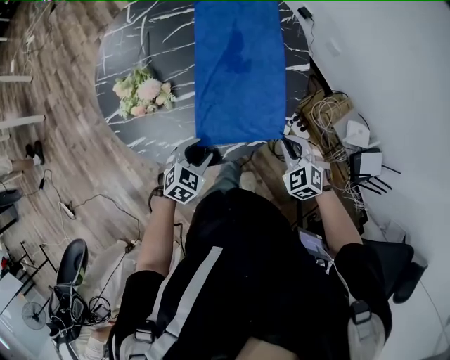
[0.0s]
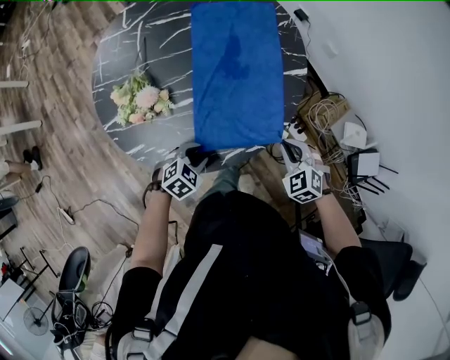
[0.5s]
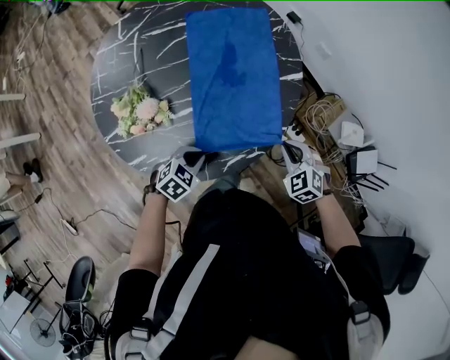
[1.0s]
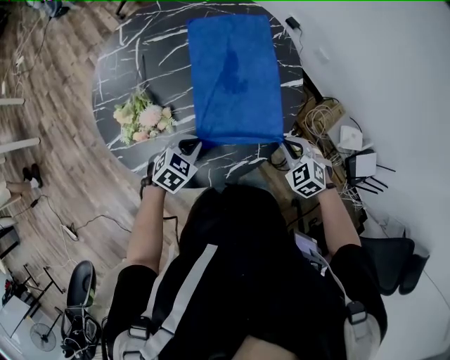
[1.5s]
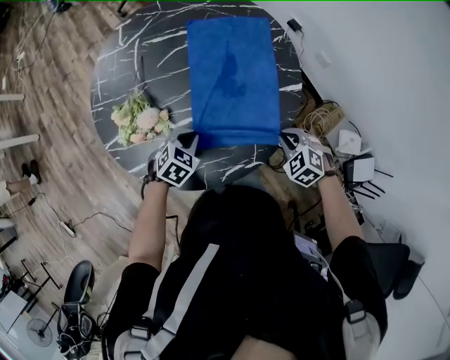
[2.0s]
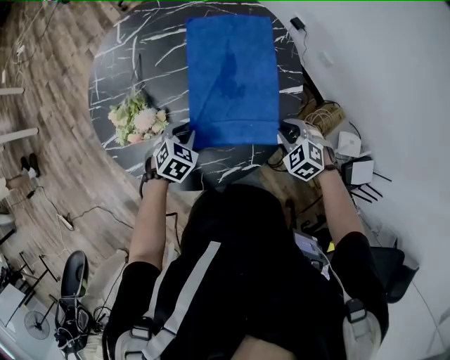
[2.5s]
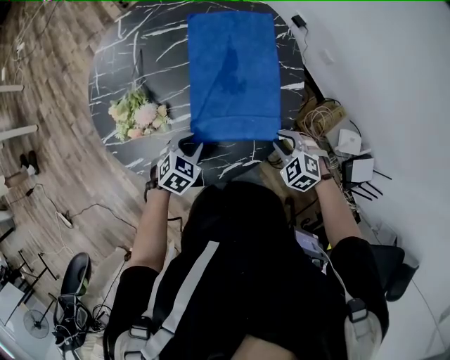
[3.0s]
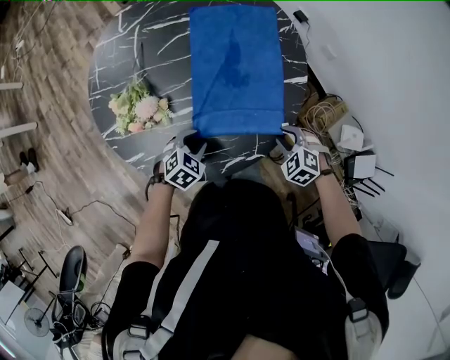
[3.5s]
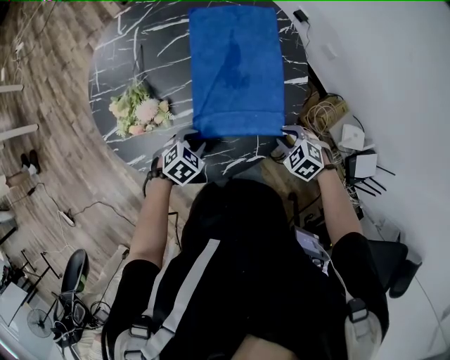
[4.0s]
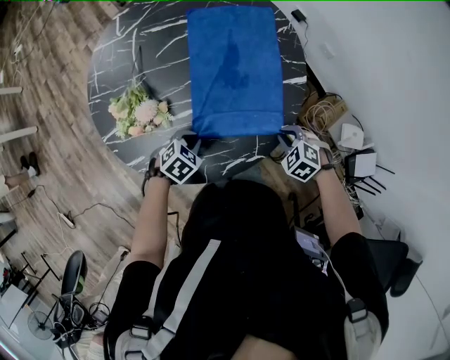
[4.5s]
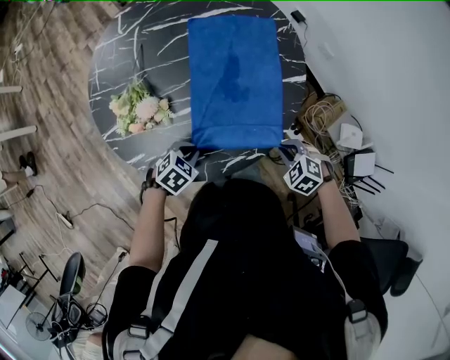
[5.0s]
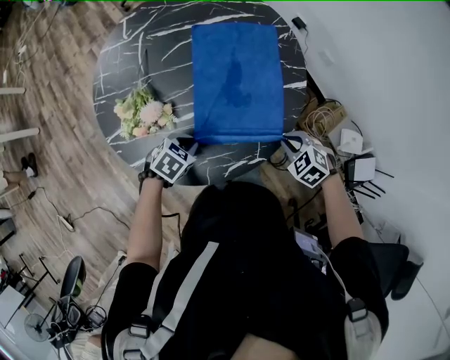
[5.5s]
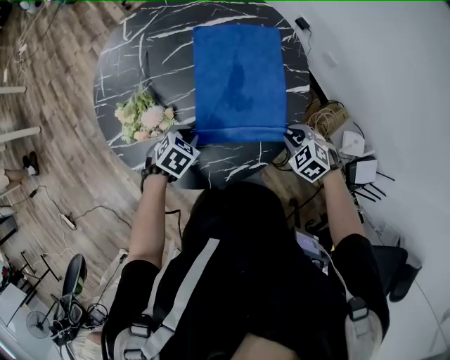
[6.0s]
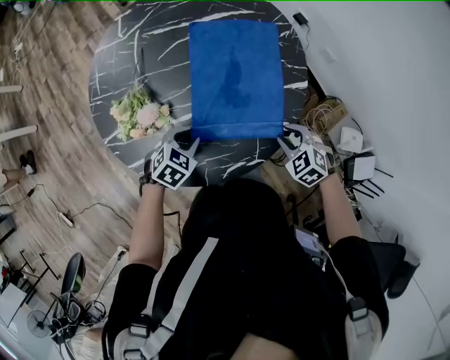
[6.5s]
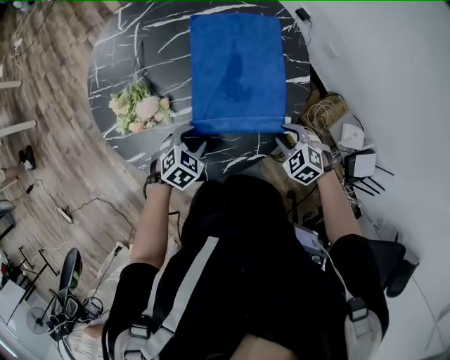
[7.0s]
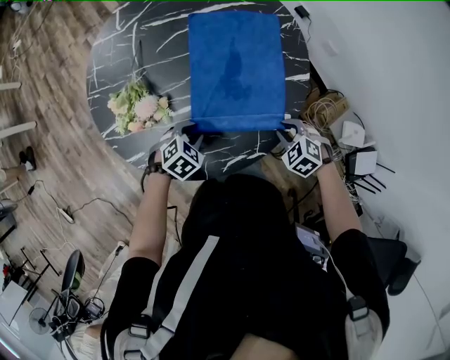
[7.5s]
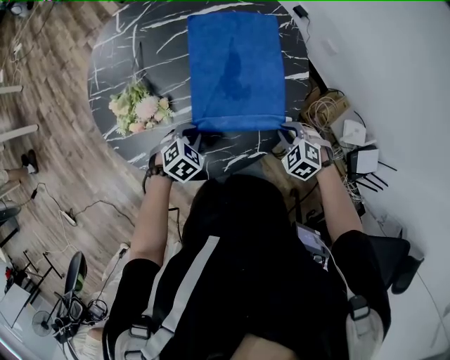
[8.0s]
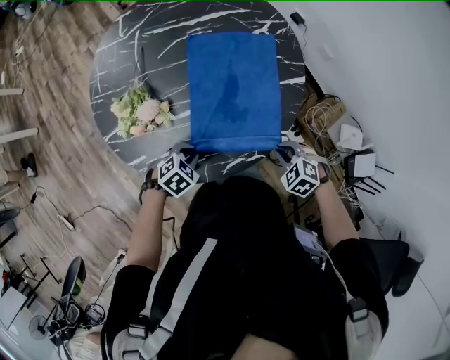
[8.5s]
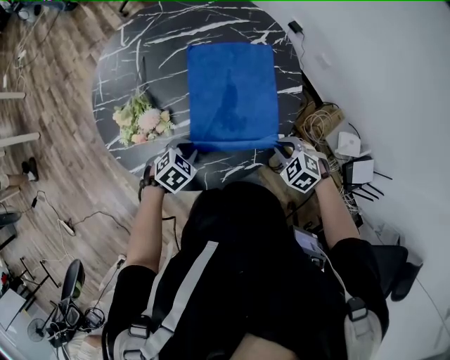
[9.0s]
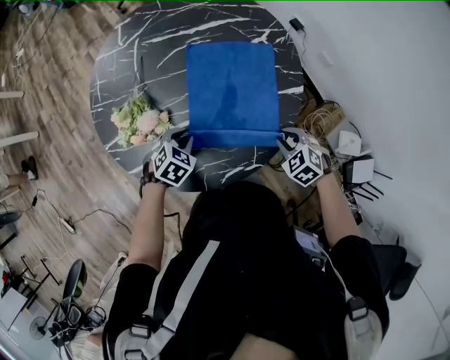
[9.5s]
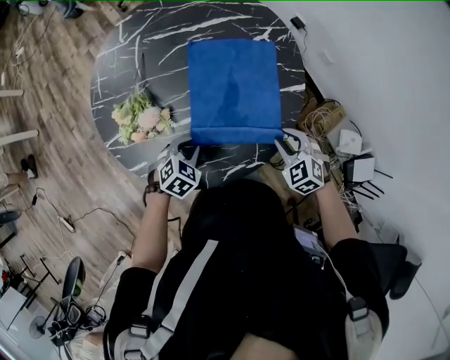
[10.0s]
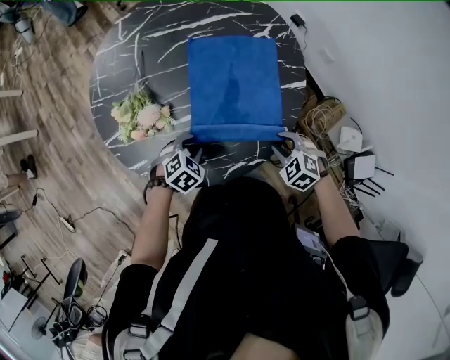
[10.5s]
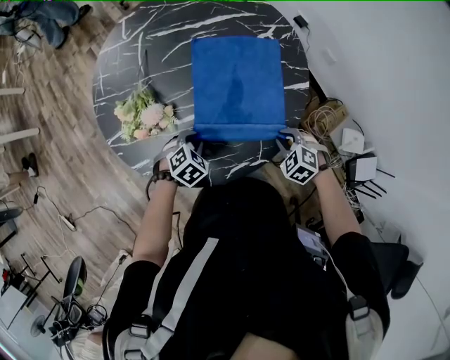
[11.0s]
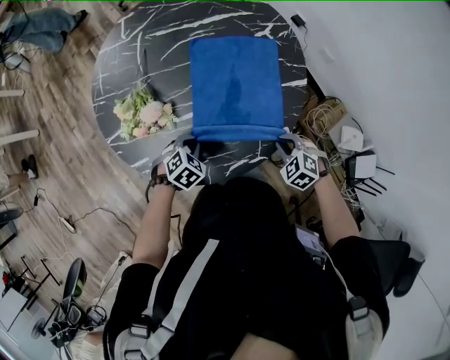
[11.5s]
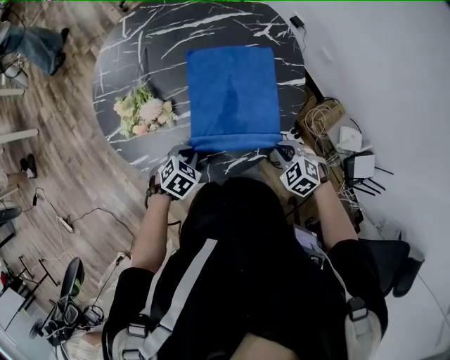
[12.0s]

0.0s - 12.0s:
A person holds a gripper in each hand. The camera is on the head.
0.0s - 2.0s: Both grippers move forward, about 10 cm. The left gripper closes its fingers.
2.0s - 4.0s: The right gripper opens up, while the left gripper ends up some 5 cm from where it was, and opens its fingers.
4.0s - 6.0s: The left gripper changes place by approximately 5 cm.
6.0s - 8.0s: The left gripper opens, then closes once more.
8.0s - 10.0s: The left gripper goes forward and backward, some 10 cm each way, reversing 2 times; the right gripper shifts roughly 5 cm upward, and goes backward and returns, approximately 5 cm each way.
10.0s - 12.0s: The grippers both shift backward by roughly 5 cm. The right gripper closes its fingers.

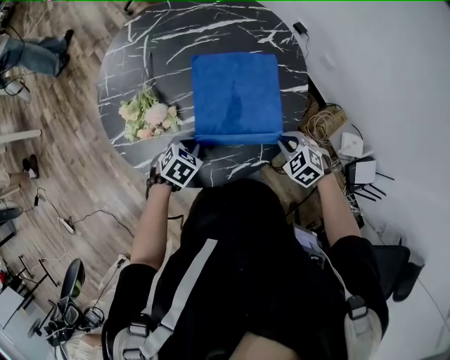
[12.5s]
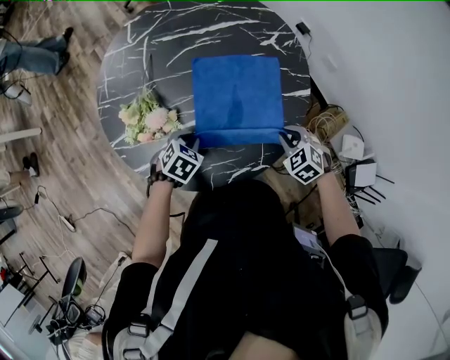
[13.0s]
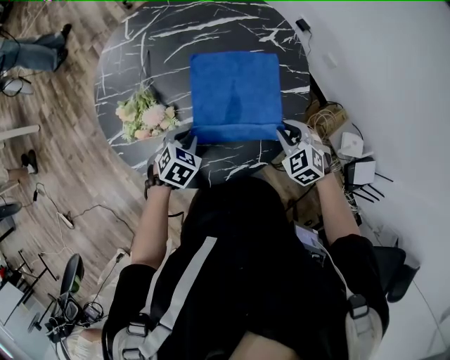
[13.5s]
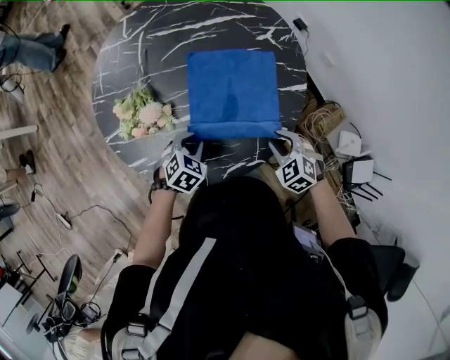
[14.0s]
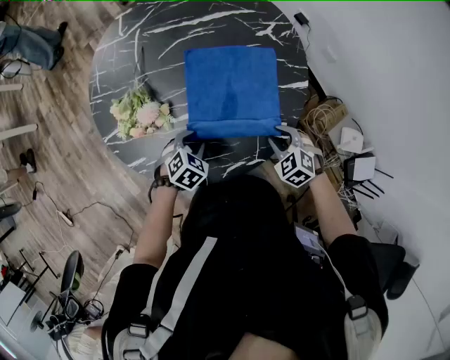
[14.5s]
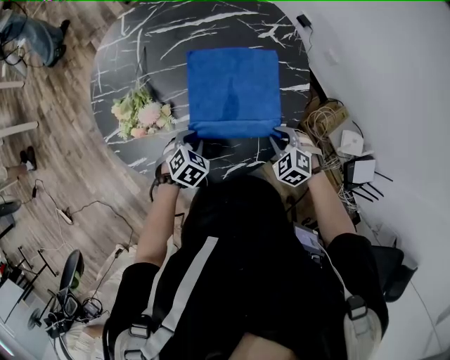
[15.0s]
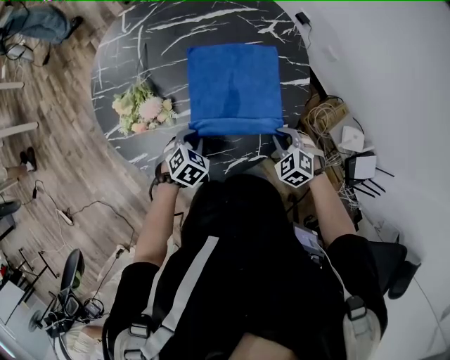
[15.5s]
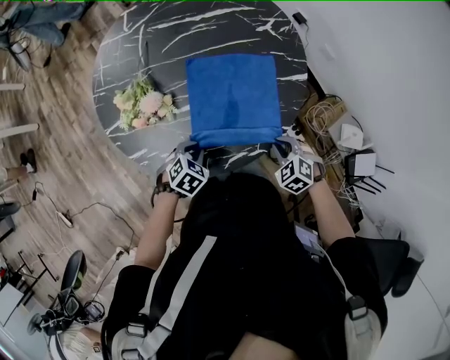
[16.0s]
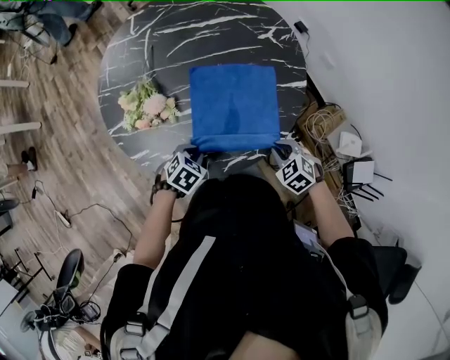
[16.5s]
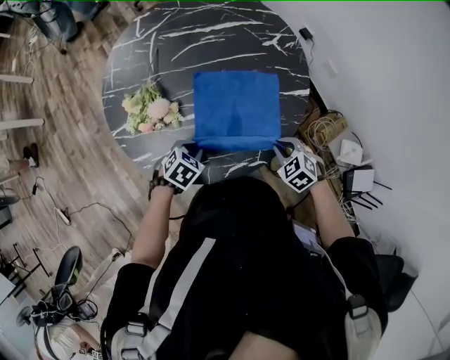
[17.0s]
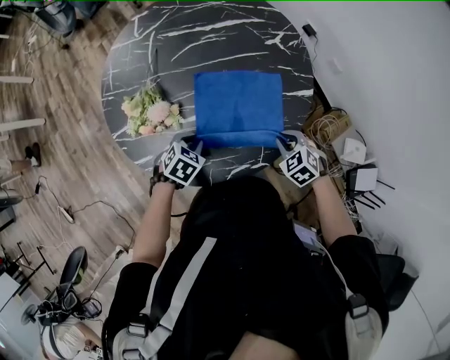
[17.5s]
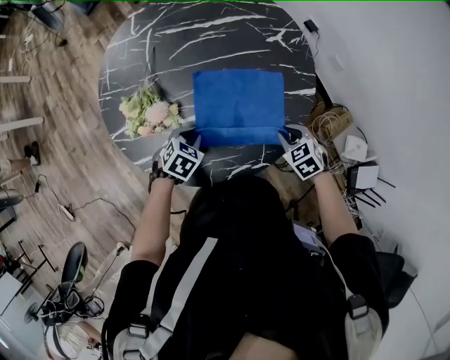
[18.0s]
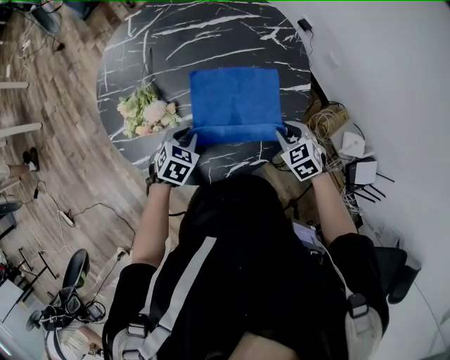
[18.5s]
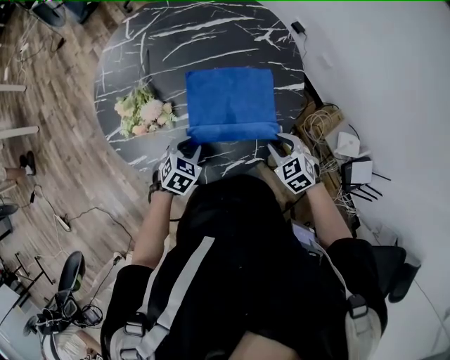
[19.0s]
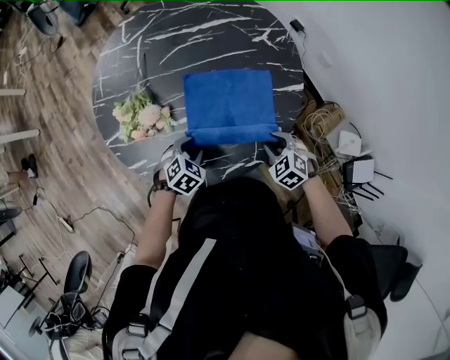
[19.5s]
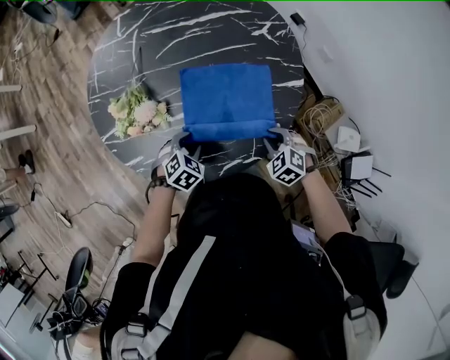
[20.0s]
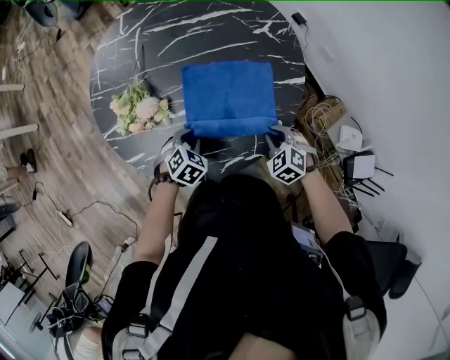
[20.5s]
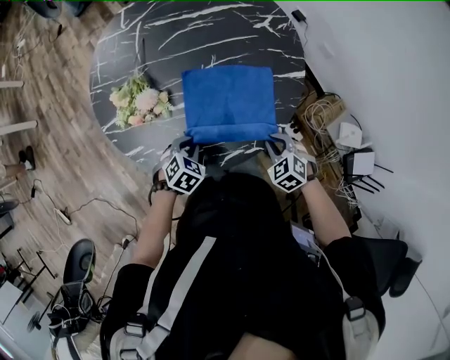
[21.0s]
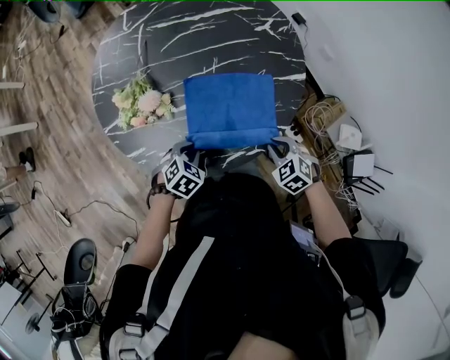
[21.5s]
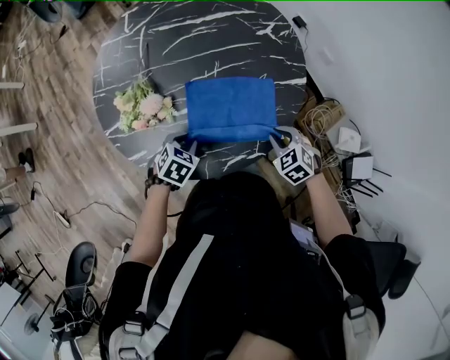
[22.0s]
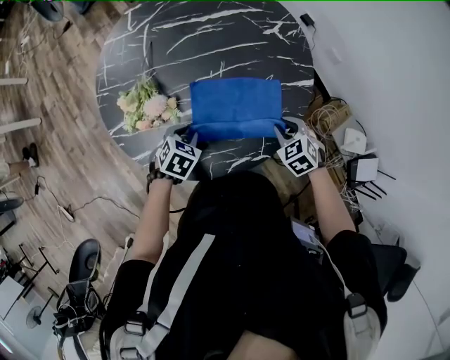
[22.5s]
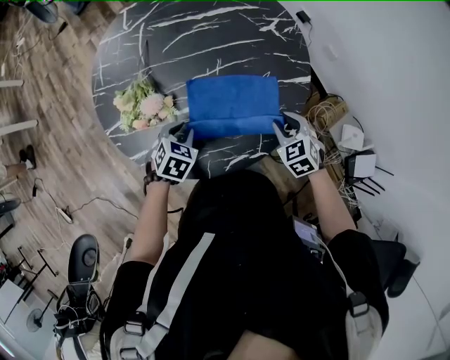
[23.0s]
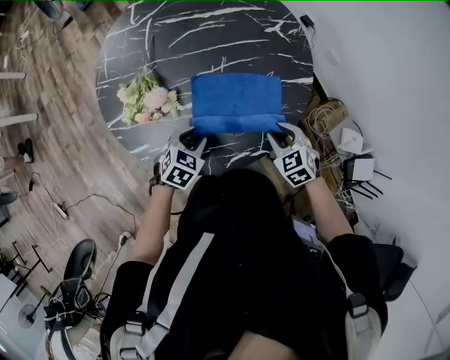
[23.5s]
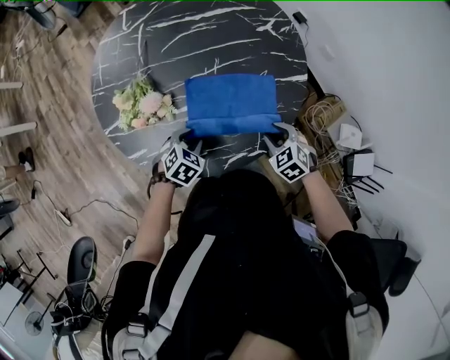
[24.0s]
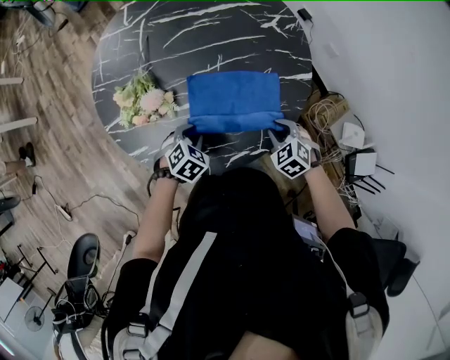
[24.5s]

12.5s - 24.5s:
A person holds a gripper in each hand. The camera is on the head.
12.5s - 14.5s: The left gripper opens its fingers.
14.5s - 16.5s: Both grippers move backward, about 5 cm.
16.5s - 18.5s: Both grippers move forward, some 10 cm.
18.5s - 20.5s: The right gripper changes place by approximately 5 cm. Meanwhile the left gripper shifts by roughly 5 cm.
20.5s - 22.5s: The left gripper goes backward and returns, approximately 5 cm each way.
22.5s - 24.5s: The grippers stay close to where they were, moving slightly.

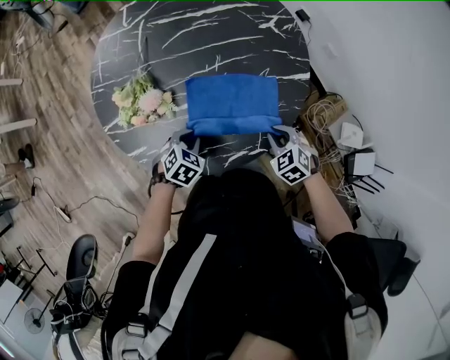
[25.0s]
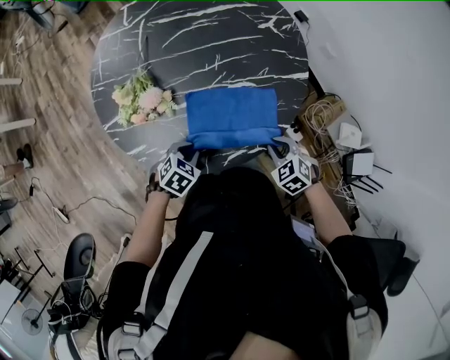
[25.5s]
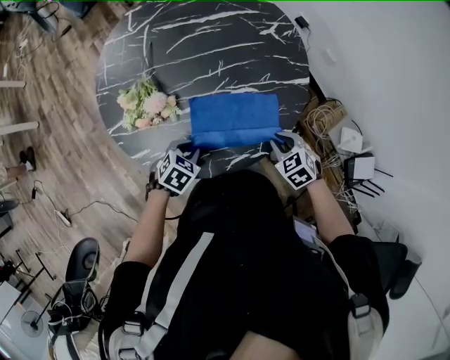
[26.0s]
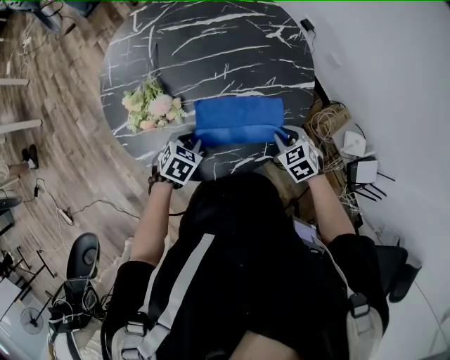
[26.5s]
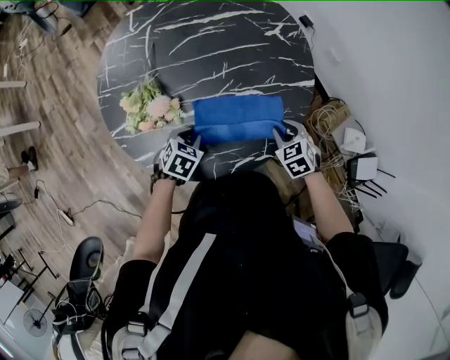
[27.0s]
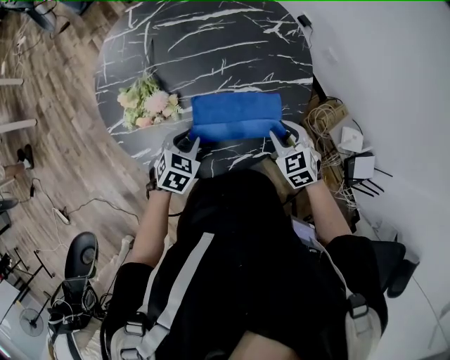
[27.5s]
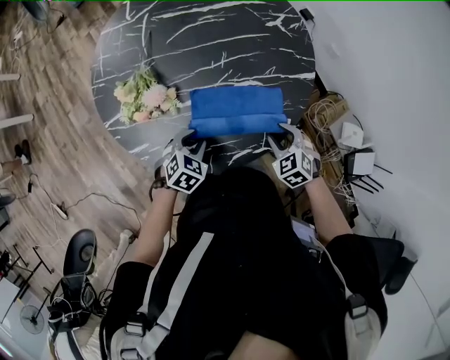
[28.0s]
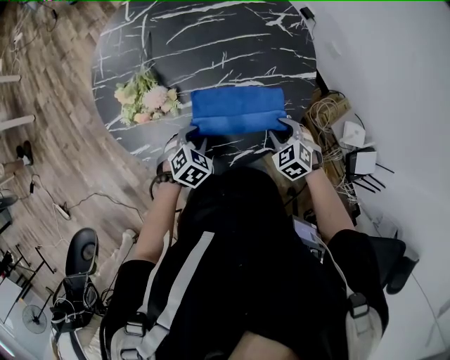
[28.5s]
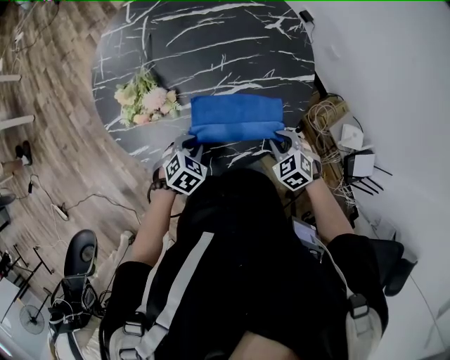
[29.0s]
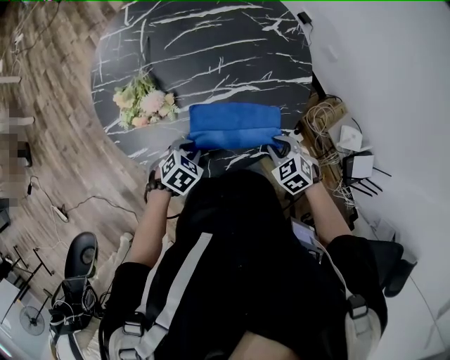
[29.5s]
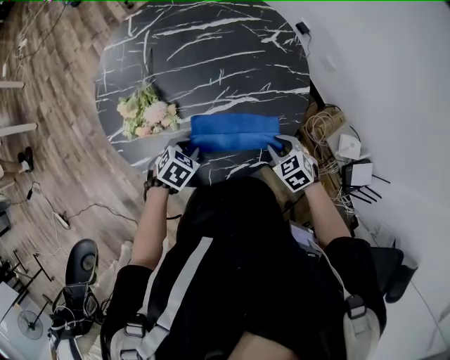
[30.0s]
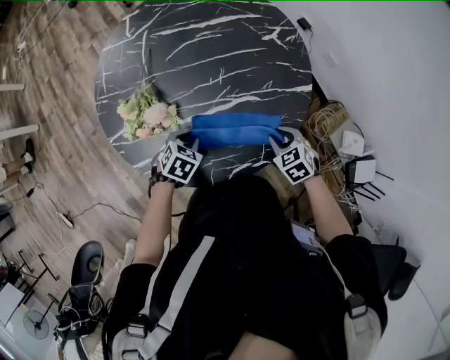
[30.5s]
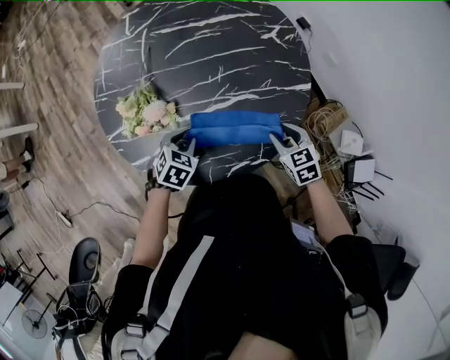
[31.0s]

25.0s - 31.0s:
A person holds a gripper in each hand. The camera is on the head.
25.0s - 27.0s: The left gripper travels backward and back again, approximately 5 cm each way.
27.0s - 29.0s: The right gripper moves backward, about 5 cm. The left gripper shifts by roughly 5 cm.
29.0s - 31.0s: Both grippers travel together forward, roughly 5 cm. The right gripper changes its angle by some 20 degrees.
